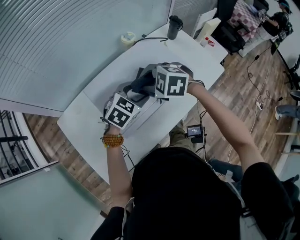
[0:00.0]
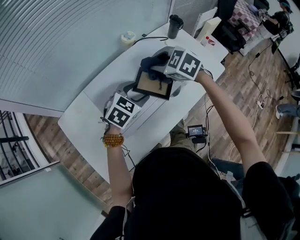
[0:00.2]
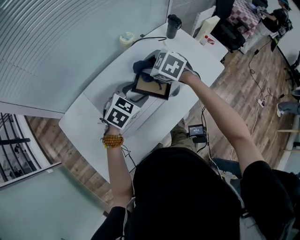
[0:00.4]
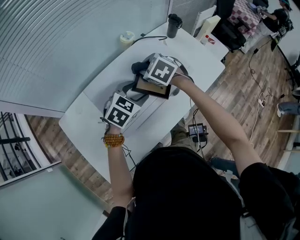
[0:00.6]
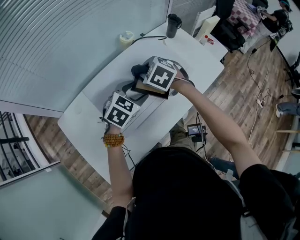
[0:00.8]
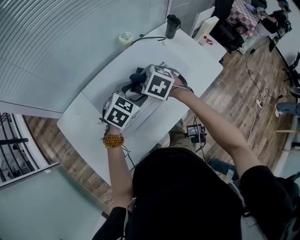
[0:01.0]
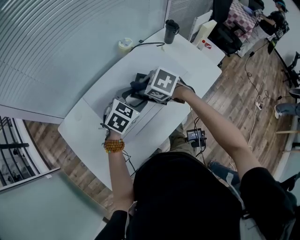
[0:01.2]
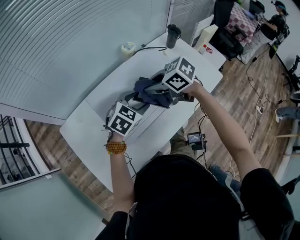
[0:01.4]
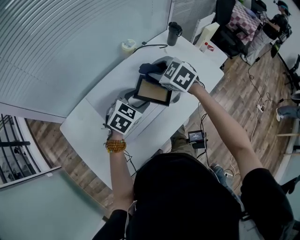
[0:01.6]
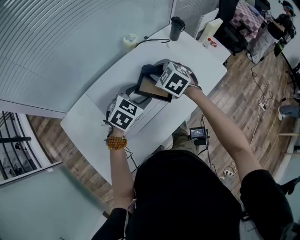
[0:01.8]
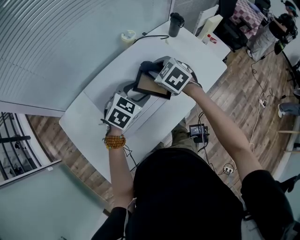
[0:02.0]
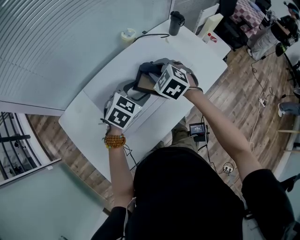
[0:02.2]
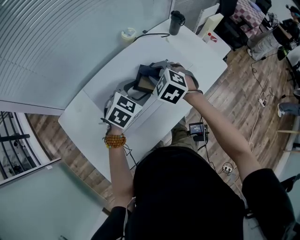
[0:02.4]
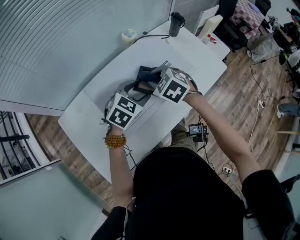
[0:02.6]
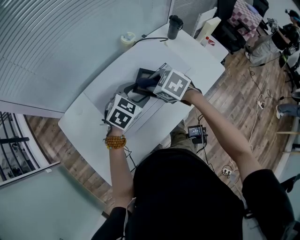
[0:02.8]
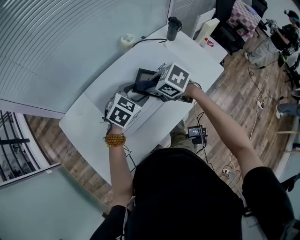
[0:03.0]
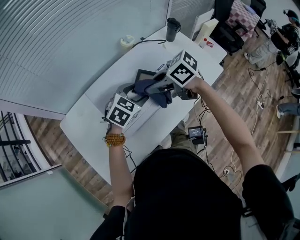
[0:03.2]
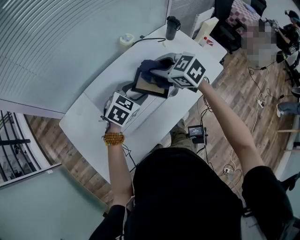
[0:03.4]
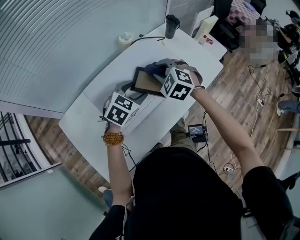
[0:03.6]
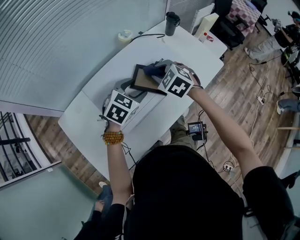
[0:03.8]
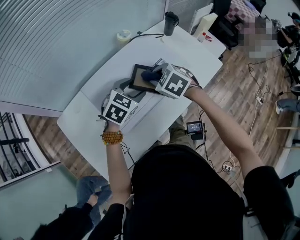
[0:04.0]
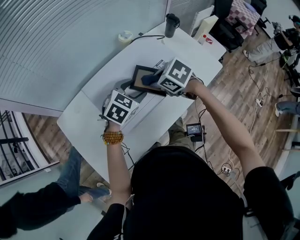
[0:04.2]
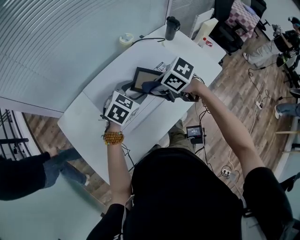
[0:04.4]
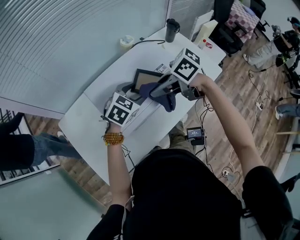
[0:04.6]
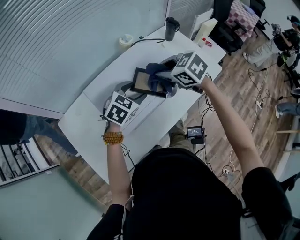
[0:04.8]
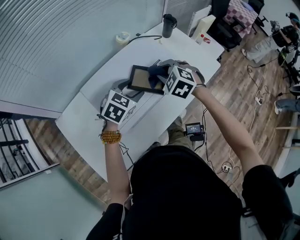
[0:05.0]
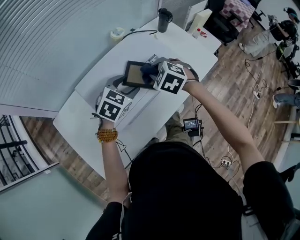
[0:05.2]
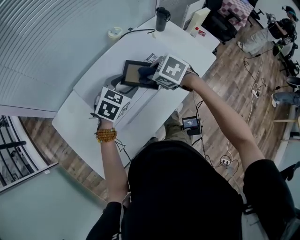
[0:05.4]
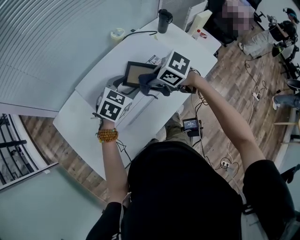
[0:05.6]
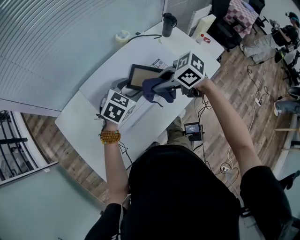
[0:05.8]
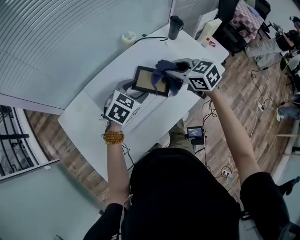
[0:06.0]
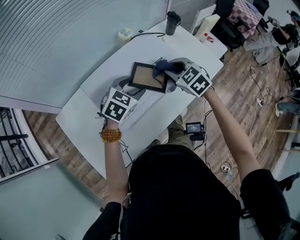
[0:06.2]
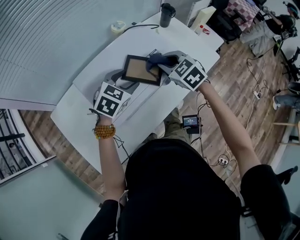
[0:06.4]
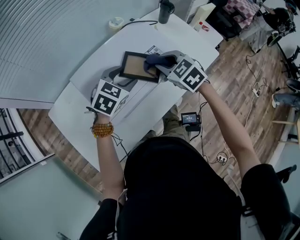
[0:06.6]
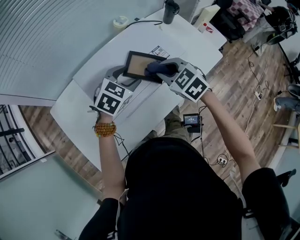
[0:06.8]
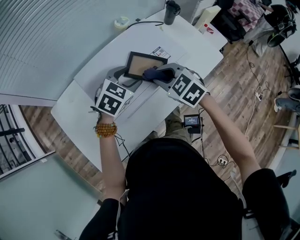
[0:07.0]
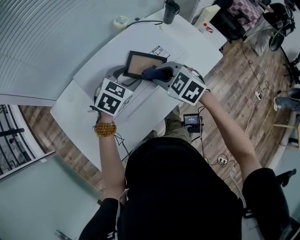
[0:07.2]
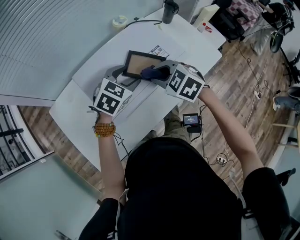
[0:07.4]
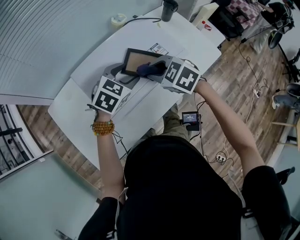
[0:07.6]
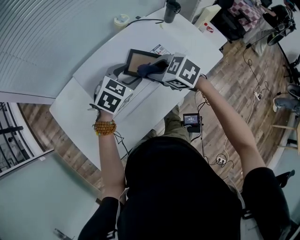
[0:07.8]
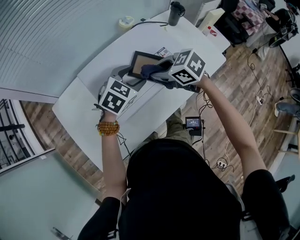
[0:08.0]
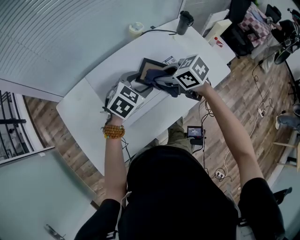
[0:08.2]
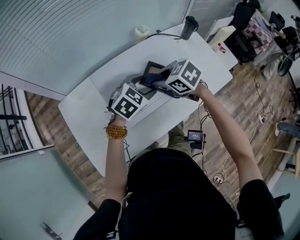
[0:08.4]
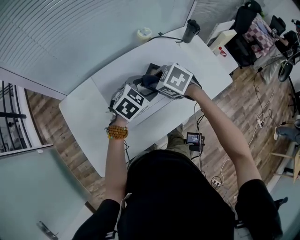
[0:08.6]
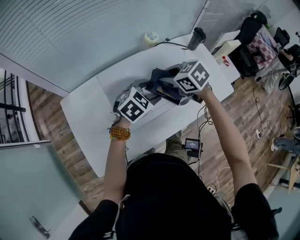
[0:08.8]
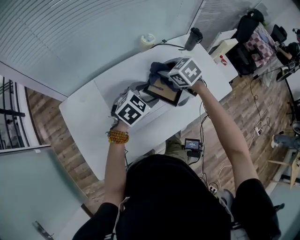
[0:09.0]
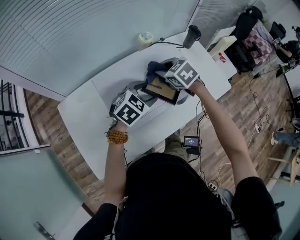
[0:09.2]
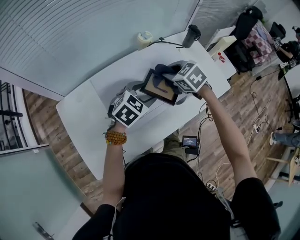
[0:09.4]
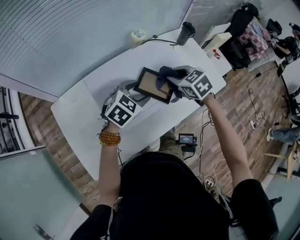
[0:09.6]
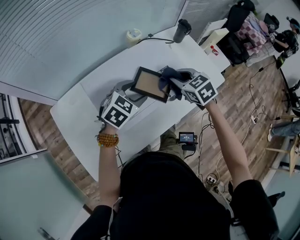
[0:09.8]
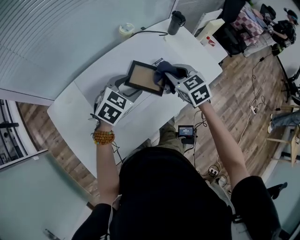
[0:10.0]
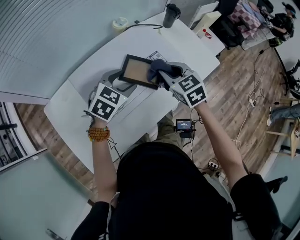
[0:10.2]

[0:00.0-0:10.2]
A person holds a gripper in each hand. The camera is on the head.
0:00.0 to 0:01.4: The right gripper swivels about 40 degrees.
0:05.8 to 0:07.2: The right gripper turns by some 40 degrees.
0:07.2 to 0:08.8: The right gripper heads forward, covering about 10 cm.
0:08.8 to 0:10.2: The right gripper shifts about 10 cm to the right, and changes its angle by some 30 degrees.

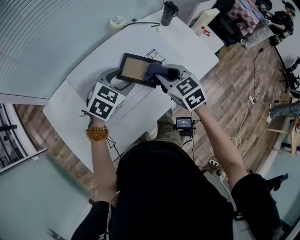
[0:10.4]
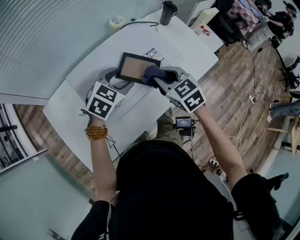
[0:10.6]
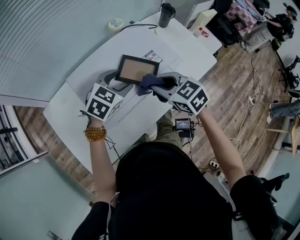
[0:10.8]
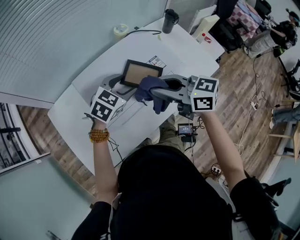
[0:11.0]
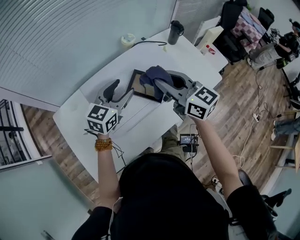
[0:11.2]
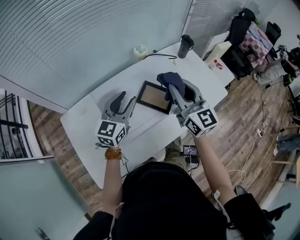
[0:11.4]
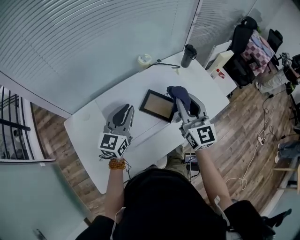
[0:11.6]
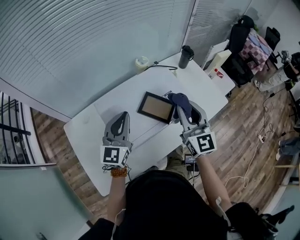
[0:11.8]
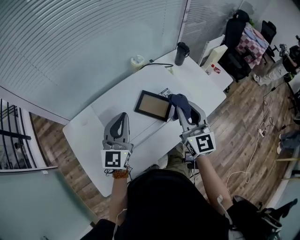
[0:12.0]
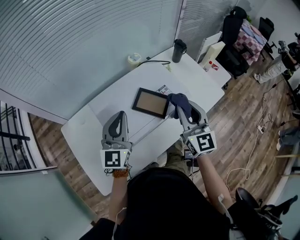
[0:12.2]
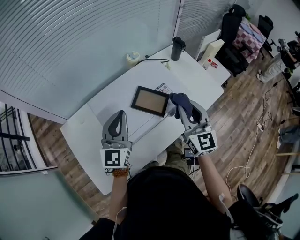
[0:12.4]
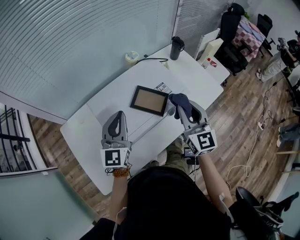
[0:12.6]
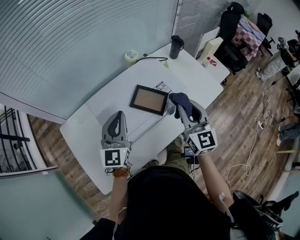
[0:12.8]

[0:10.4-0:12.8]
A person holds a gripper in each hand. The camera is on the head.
0:10.4 to 0:11.6: The right gripper is displaced upward by approximately 15 cm, and tilts its fingers approximately 40 degrees upward. Meanwhile the left gripper is displaced upward and to the left by some 10 cm, tips its fingers upward by approximately 40 degrees, and closes its fingers.
0:11.6 to 0:12.8: The right gripper changes place by roughly 5 cm.

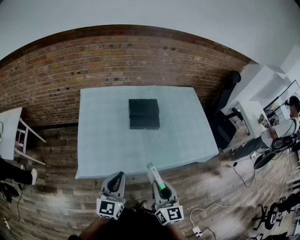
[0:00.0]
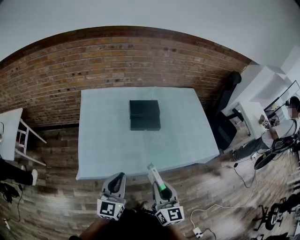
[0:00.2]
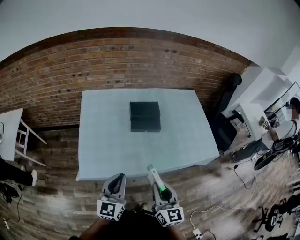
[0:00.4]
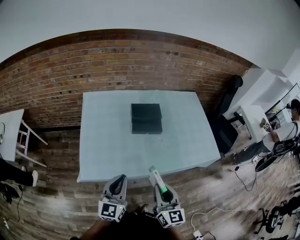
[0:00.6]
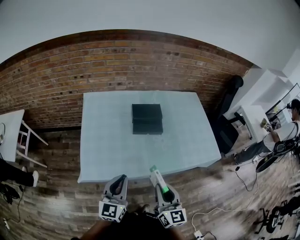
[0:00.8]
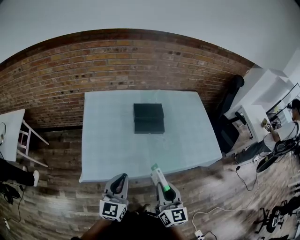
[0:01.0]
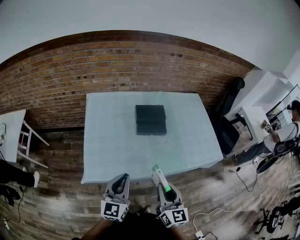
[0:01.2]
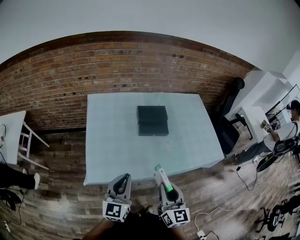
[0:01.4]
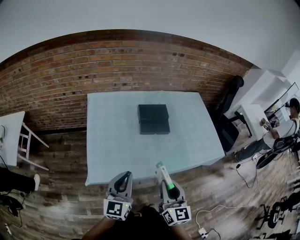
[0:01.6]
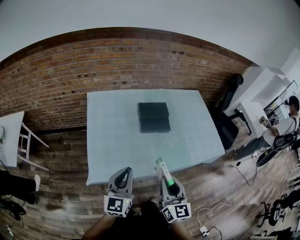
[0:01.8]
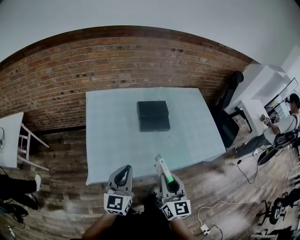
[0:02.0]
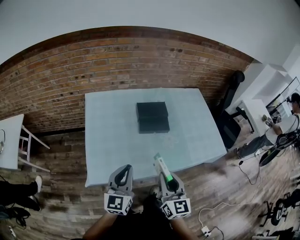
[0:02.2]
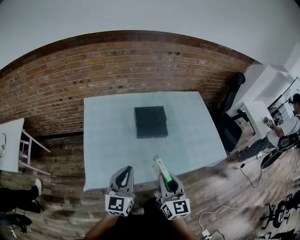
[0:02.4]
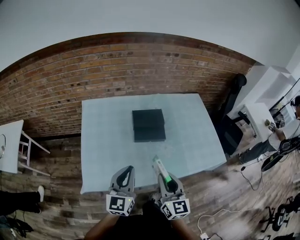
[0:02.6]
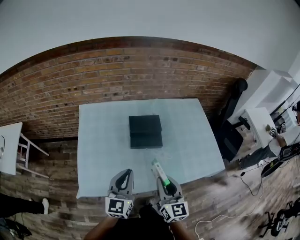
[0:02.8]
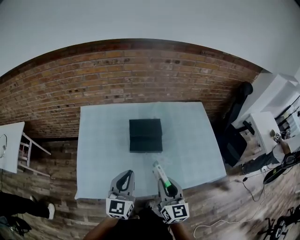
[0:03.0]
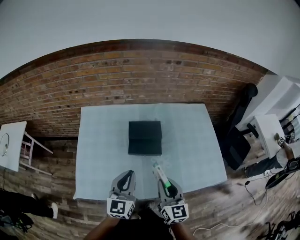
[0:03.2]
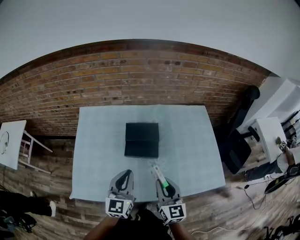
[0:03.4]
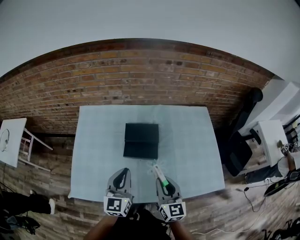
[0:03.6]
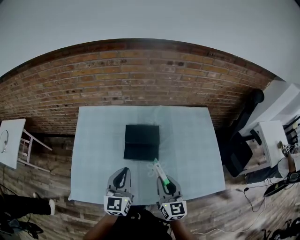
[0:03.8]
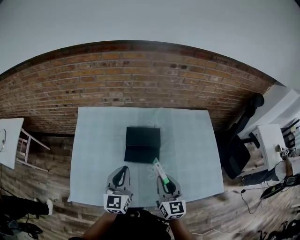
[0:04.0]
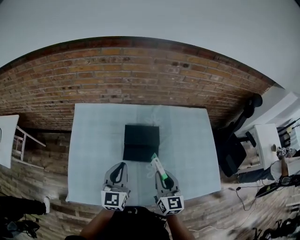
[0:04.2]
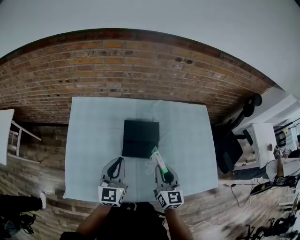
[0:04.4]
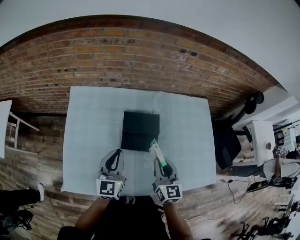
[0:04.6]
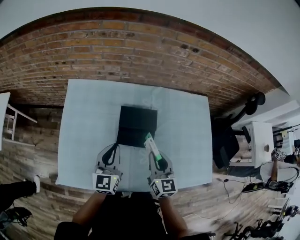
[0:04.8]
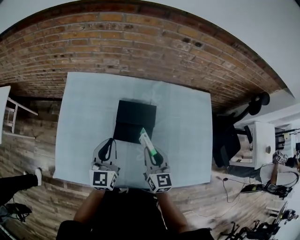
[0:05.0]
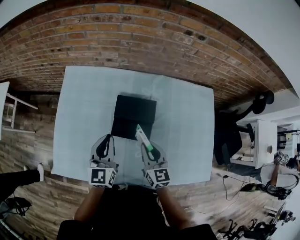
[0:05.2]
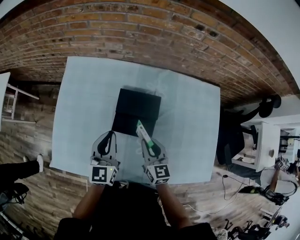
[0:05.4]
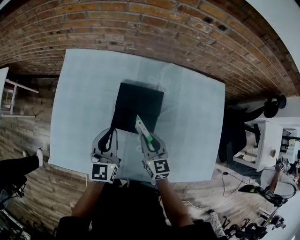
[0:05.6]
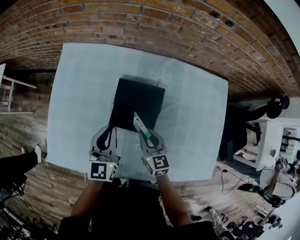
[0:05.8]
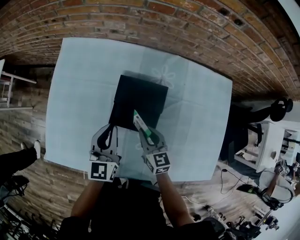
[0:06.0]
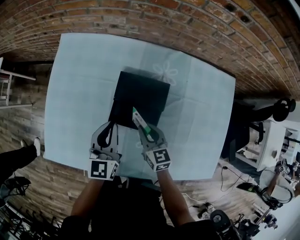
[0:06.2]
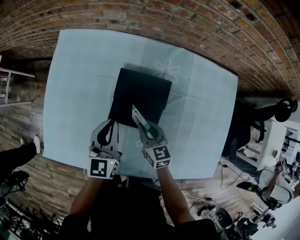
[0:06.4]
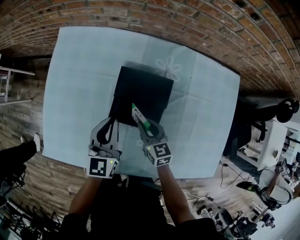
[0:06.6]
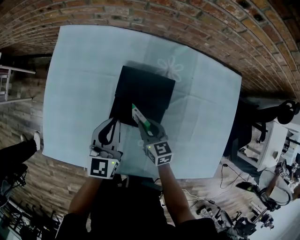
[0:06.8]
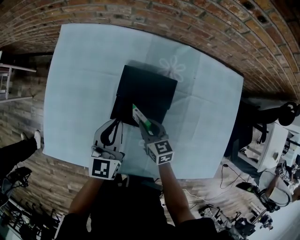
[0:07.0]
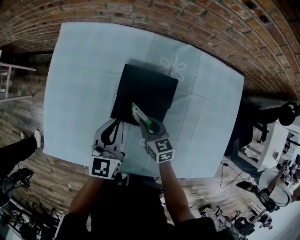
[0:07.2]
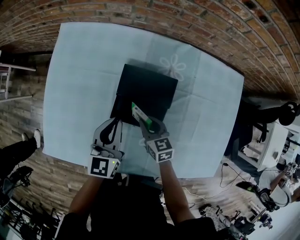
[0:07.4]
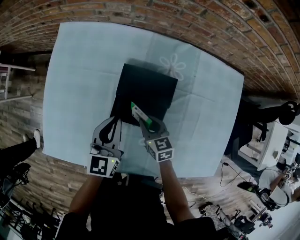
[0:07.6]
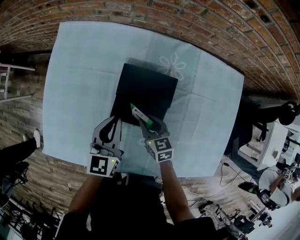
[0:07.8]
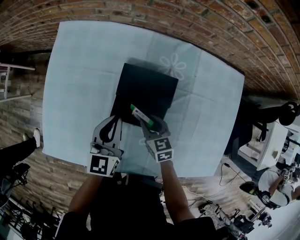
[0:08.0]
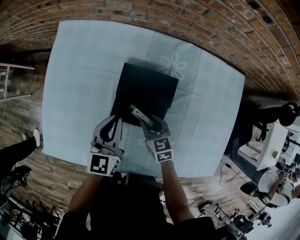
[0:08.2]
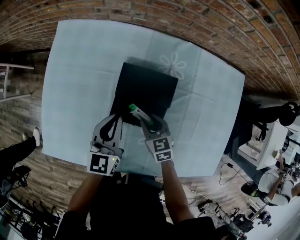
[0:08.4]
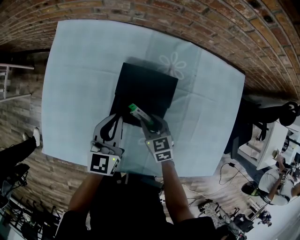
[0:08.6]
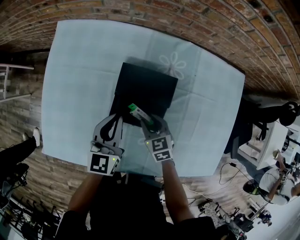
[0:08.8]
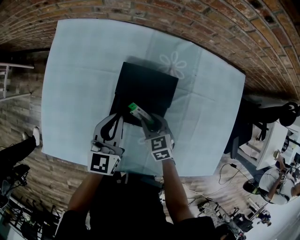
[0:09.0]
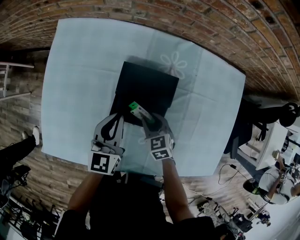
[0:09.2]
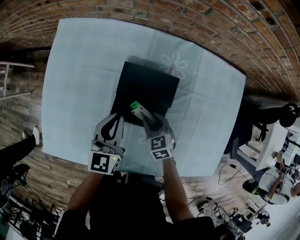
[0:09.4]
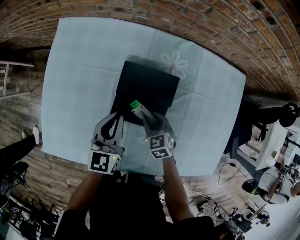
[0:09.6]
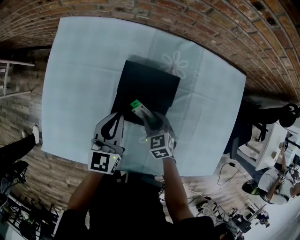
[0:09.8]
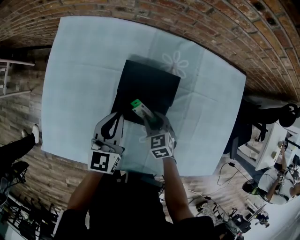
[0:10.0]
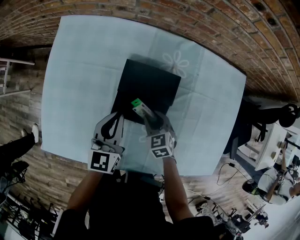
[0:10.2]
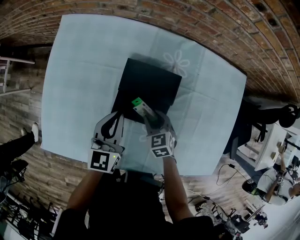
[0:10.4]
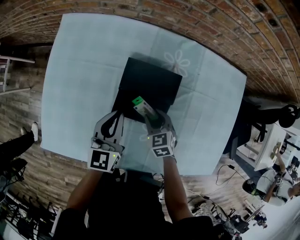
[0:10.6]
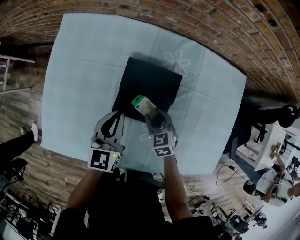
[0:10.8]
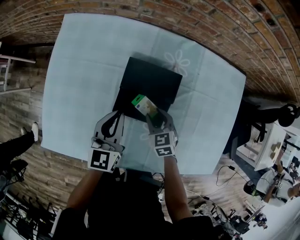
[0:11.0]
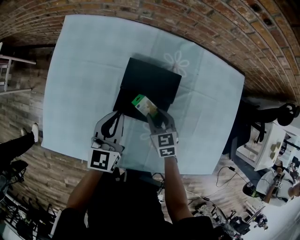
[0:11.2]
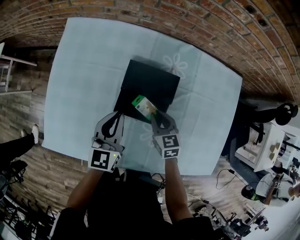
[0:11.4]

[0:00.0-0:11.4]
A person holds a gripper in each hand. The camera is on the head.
0:00.0 to 0:01.4: The grippers move only a little.
0:01.4 to 0:02.8: Both grippers move forward and to the right, about 15 cm.
0:02.8 to 0:04.2: Both grippers move forward, about 15 cm.
0:04.2 to 0:05.6: The right gripper is displaced downward and forward by approximately 15 cm, and changes its angle by approximately 20 degrees; the left gripper goes roughly 10 cm forward and downward.
0:05.6 to 0:07.2: The left gripper heads downward, covering approximately 5 cm, while the right gripper moves downward, roughly 10 cm, and changes its angle by about 20 degrees.
0:07.2 to 0:08.6: The grippers move only a little.
0:08.6 to 0:11.4: The grippers stay close to where they were, moving slightly.
